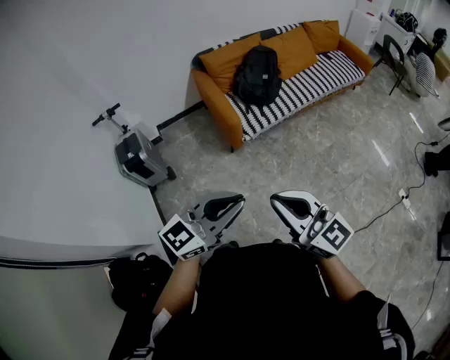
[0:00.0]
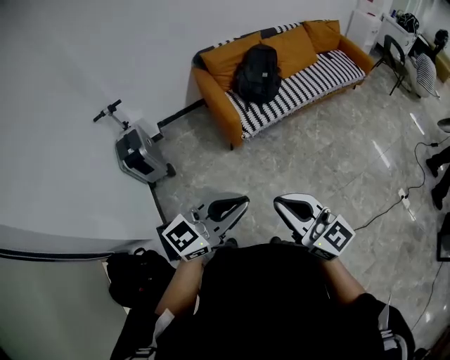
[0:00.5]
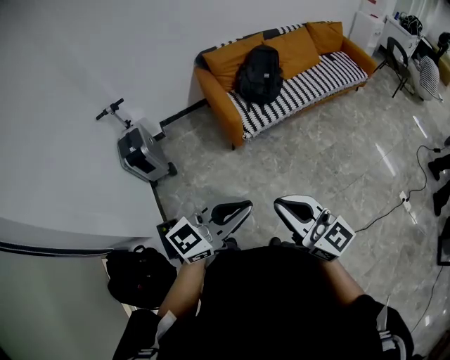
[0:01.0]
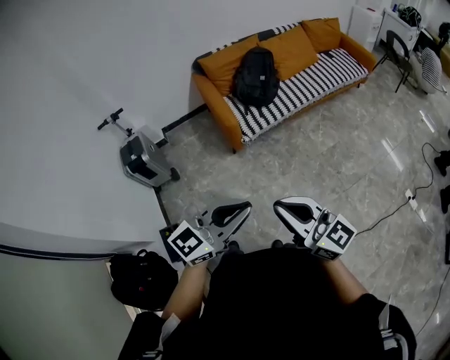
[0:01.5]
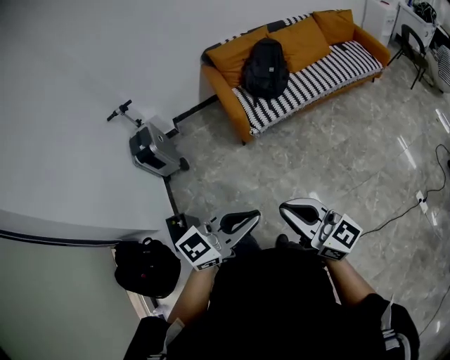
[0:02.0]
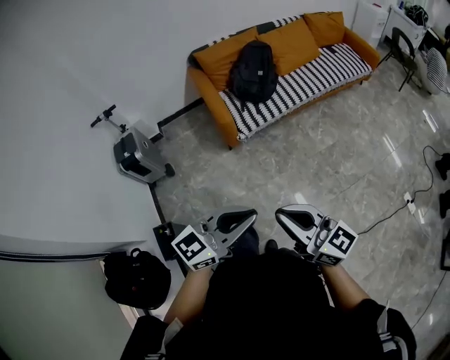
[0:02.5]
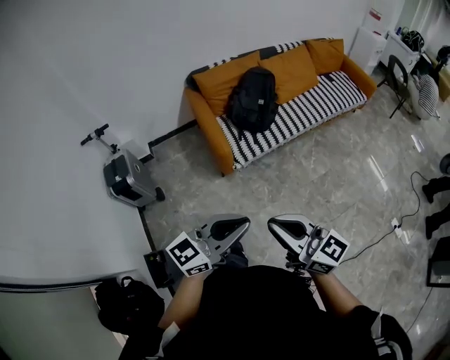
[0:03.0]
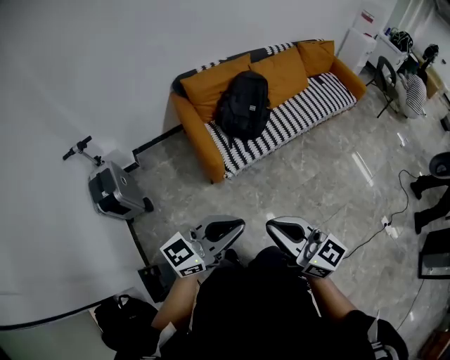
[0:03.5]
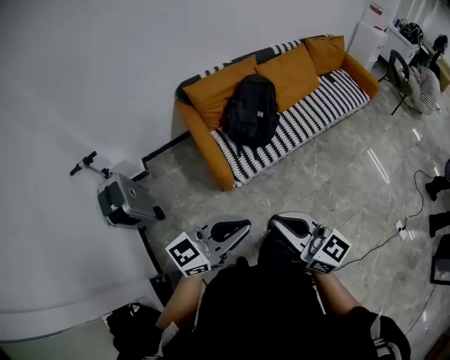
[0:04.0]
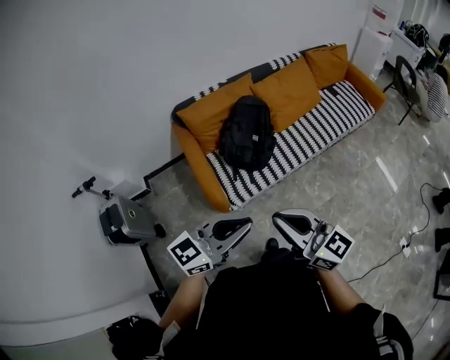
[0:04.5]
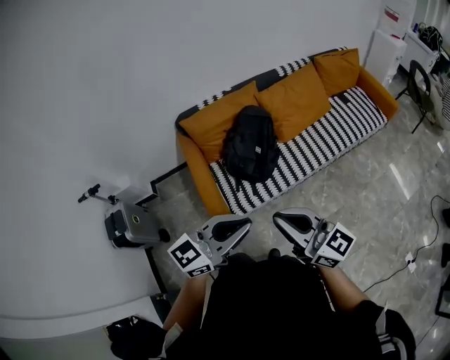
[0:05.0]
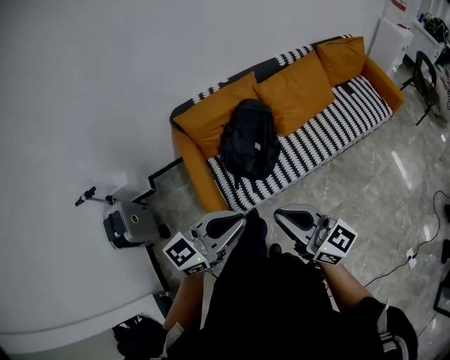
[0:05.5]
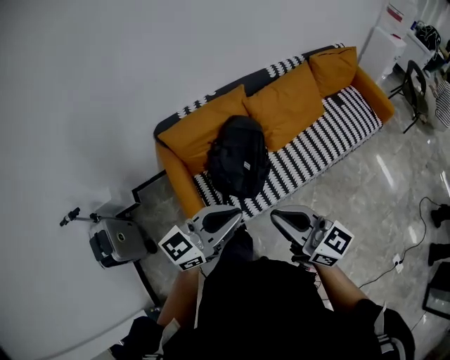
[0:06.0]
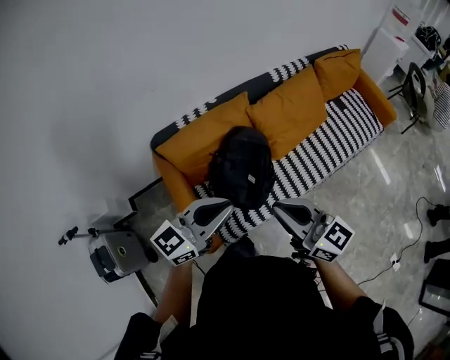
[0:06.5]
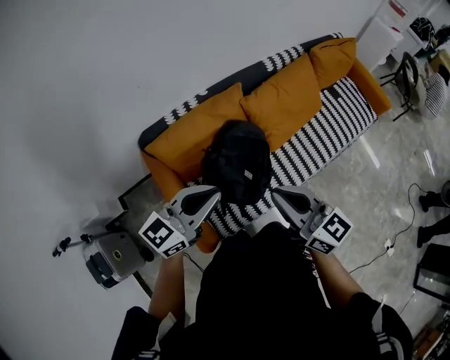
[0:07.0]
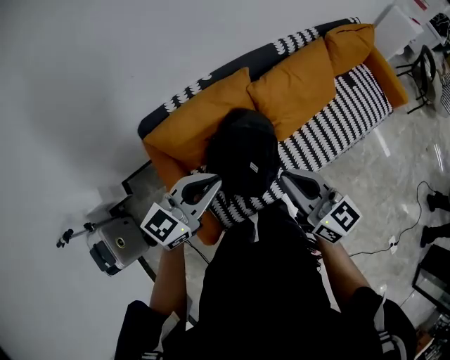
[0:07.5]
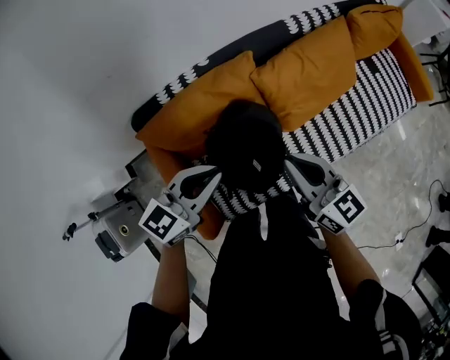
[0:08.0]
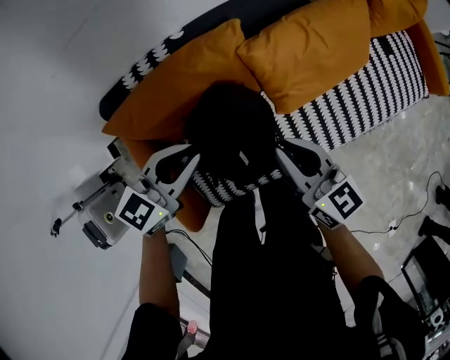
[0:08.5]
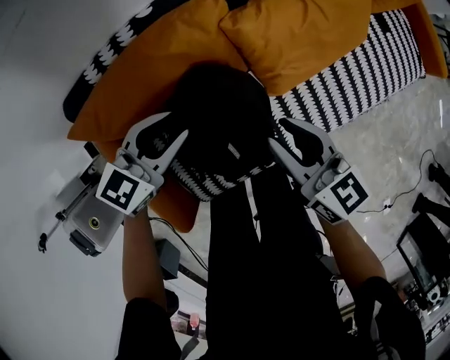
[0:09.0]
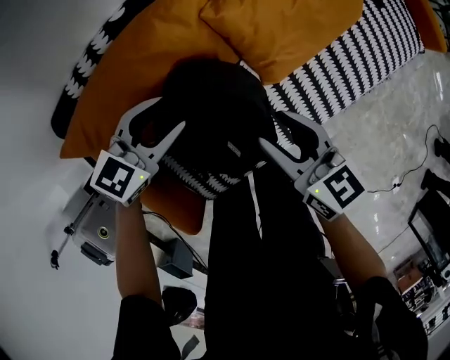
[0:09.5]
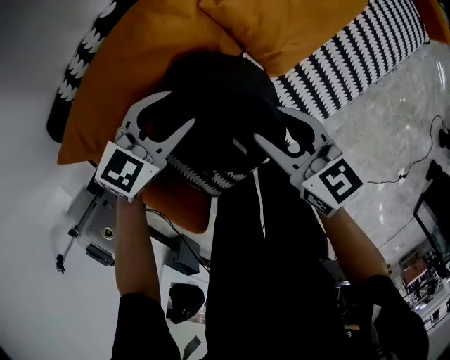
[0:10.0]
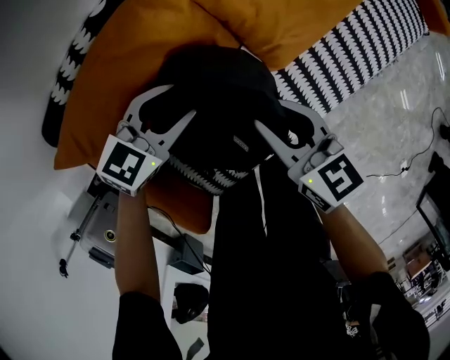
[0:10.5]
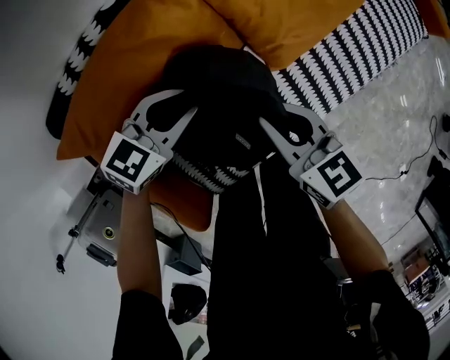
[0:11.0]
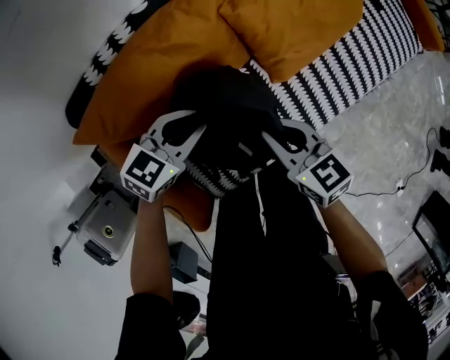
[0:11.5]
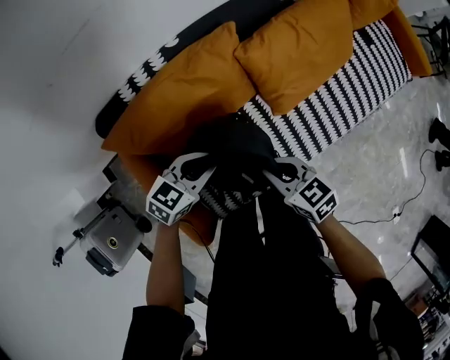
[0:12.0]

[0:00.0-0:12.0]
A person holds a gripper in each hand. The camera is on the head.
0:00.0 to 0:02.0: Both grippers move to the right, approximately 15 cm.
0:02.0 to 0:04.0: Both grippers move forward, roughly 30 cm.
0:04.0 to 0:06.0: Both grippers move forward, approximately 35 cm.
0:06.0 to 0:08.0: Both grippers travel together forward and downward, about 30 cm.
0:08.0 to 0:10.0: The left gripper travels downward and forward by some 25 cm, turns by approximately 20 degrees, and opens up, while the right gripper moves downward, approximately 20 cm, changes its angle by approximately 20 degrees, and opens.
0:10.0 to 0:12.0: Both grippers travel together backward, about 10 cm. The left gripper closes up. The right gripper closes.

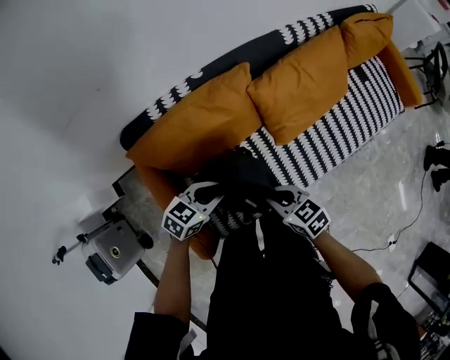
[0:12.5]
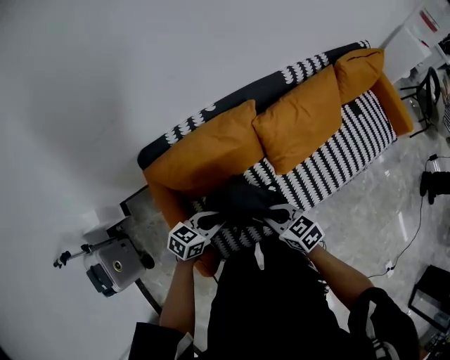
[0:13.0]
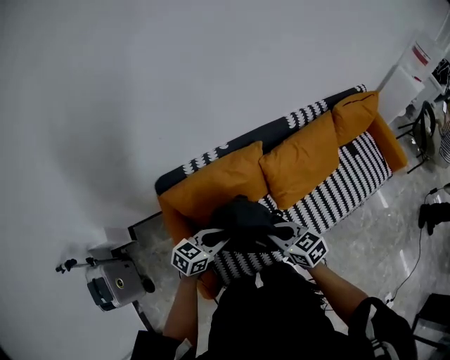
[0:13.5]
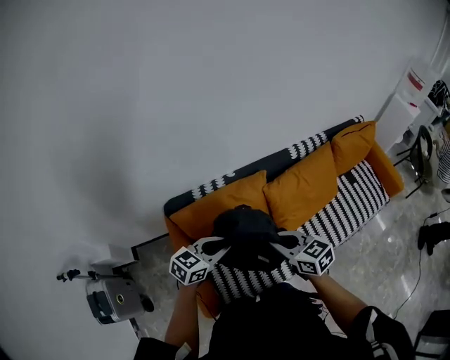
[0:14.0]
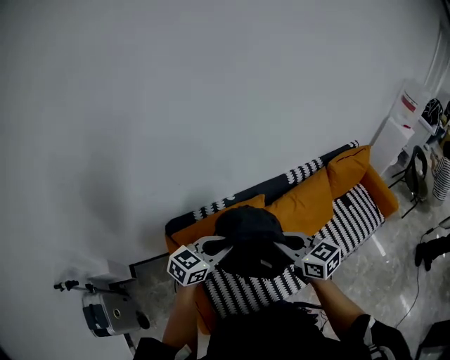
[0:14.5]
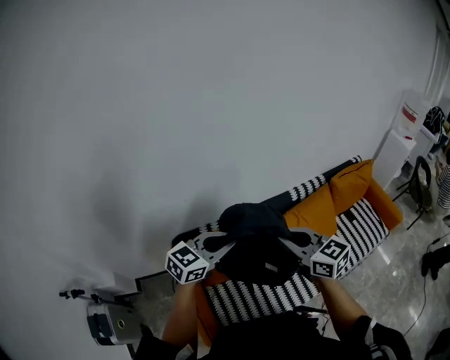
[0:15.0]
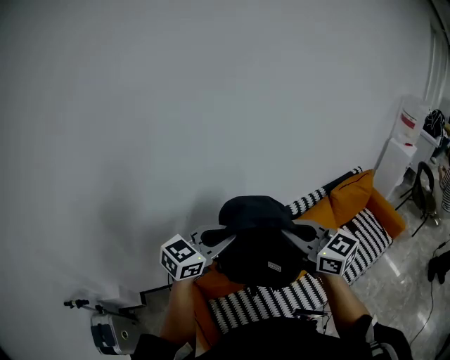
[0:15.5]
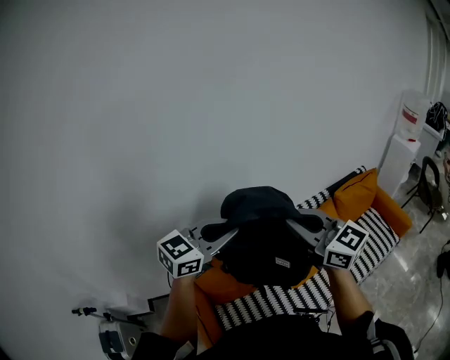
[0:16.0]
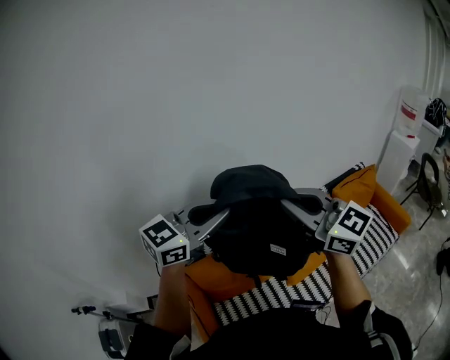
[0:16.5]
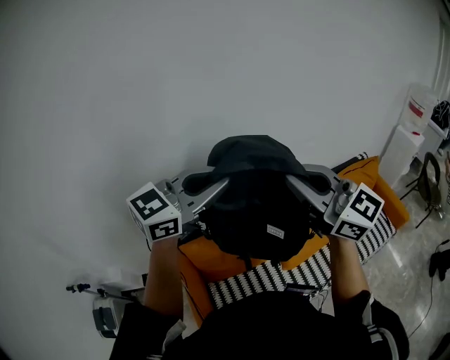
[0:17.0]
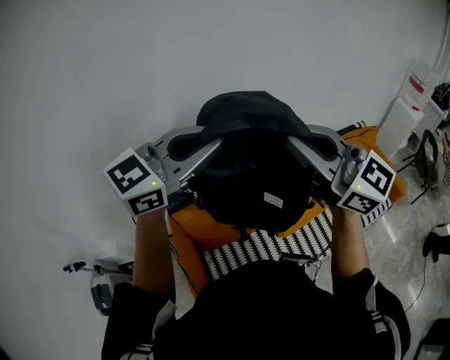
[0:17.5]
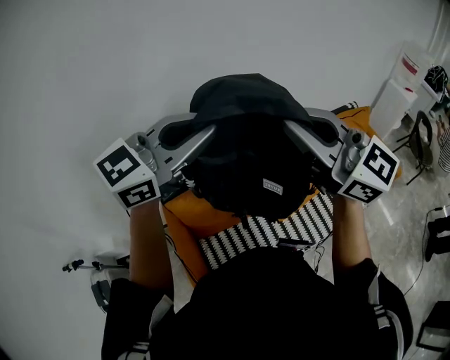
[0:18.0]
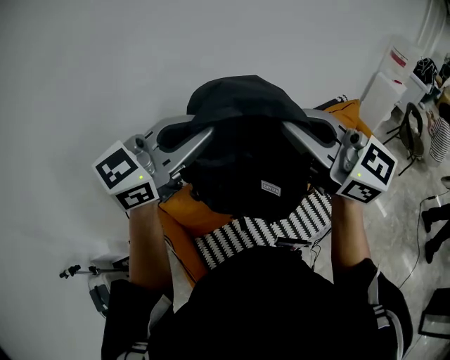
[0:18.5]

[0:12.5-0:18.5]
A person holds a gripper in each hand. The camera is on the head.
0:12.5 to 0:14.5: Both grippers travel together upward, about 30 cm. The left gripper turns by roughly 20 degrees, while the right gripper changes its angle by roughly 30 degrees.
0:14.5 to 0:16.5: The two grippers go approximately 30 cm upward. The right gripper turns by some 40 degrees. The left gripper swivels approximately 20 degrees.
0:16.5 to 0:18.5: The grippers stay close to where they were, moving slightly.

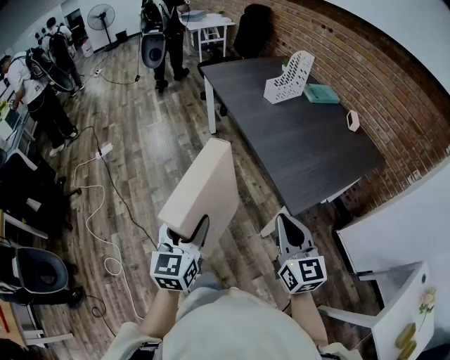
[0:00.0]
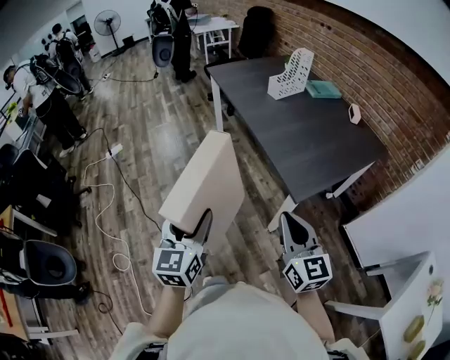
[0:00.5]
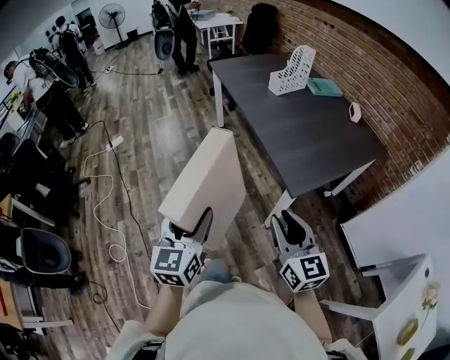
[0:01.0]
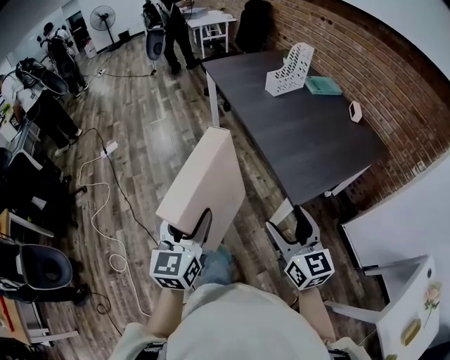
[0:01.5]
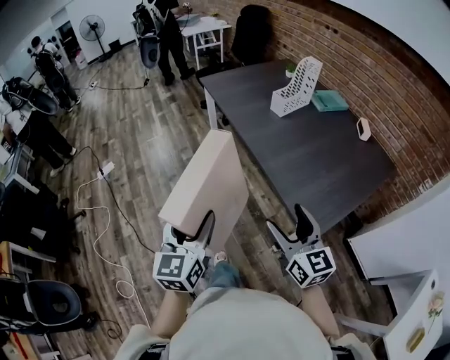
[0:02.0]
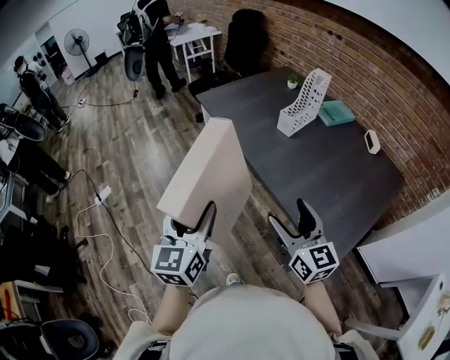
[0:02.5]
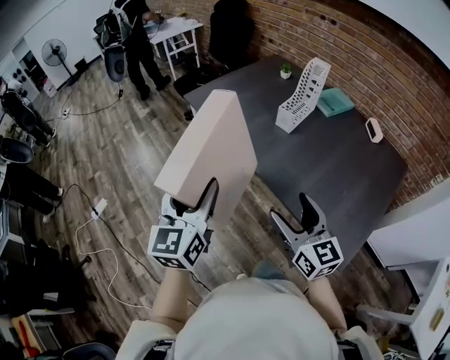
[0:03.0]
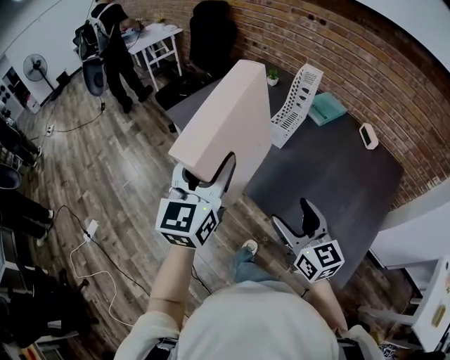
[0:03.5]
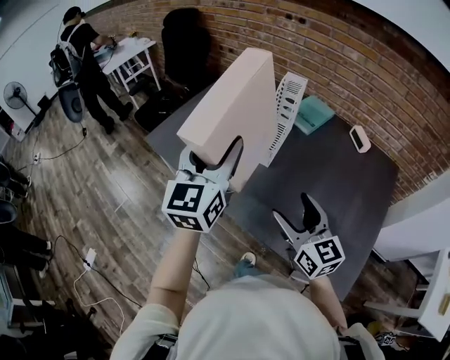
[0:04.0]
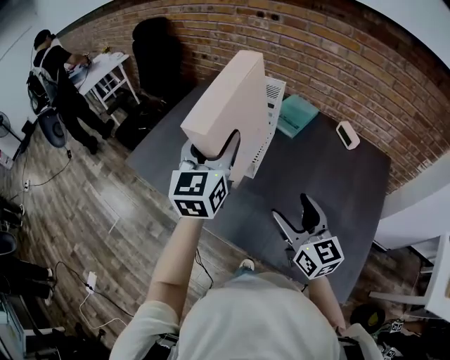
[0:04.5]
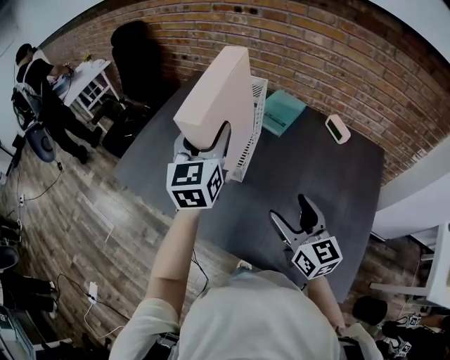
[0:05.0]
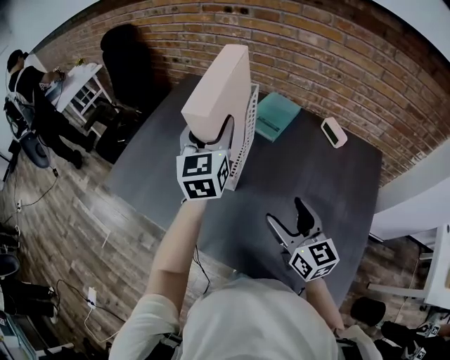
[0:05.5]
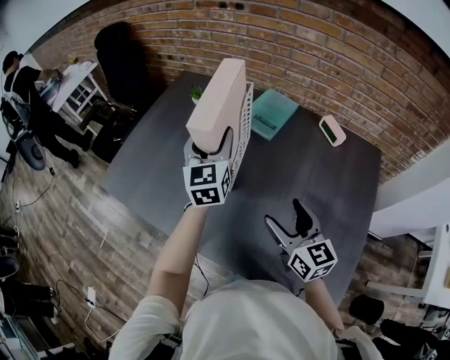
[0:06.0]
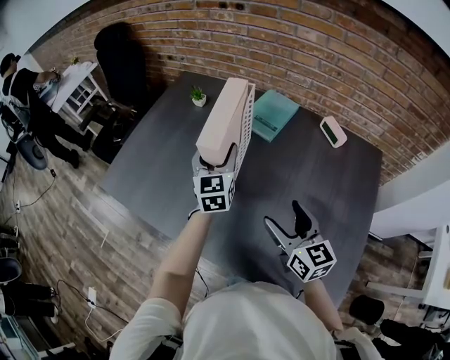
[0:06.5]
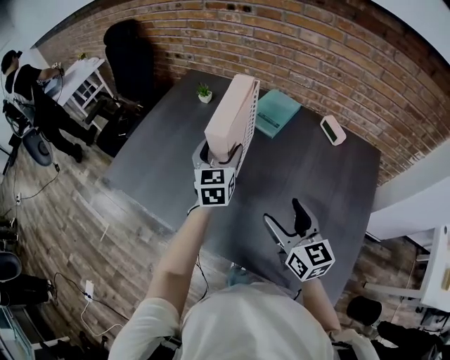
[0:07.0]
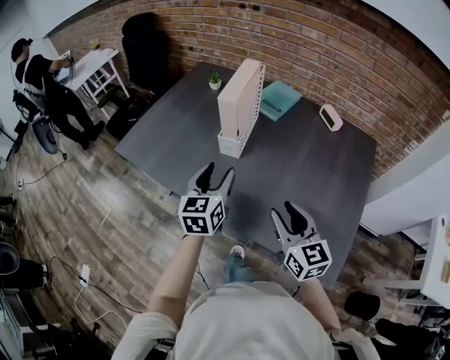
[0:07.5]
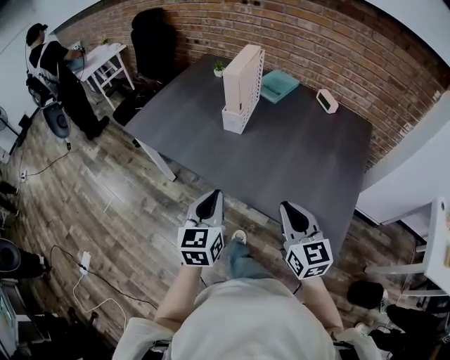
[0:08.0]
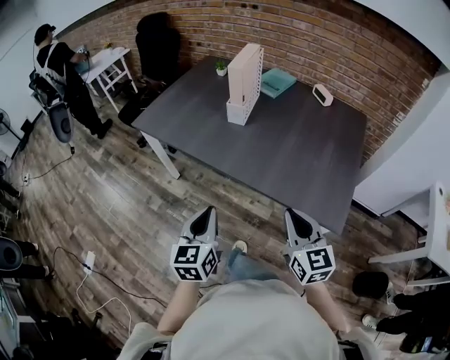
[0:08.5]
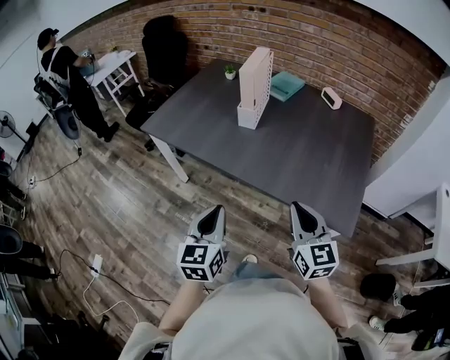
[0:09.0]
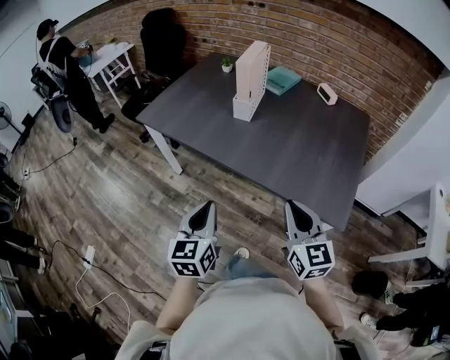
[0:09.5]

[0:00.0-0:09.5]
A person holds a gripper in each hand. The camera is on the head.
0:00.0 to 0:02.0: The two grippers go about 15 cm forward. The right gripper opens.
0:02.0 to 0:04.0: The left gripper shifts by about 60 cm, and turns by some 30 degrees. Meanwhile the right gripper changes place by some 40 cm, and changes its angle by about 20 degrees.
0:04.0 to 0:05.5: The right gripper moves to the right and forward, roughly 15 cm. Meanwhile the left gripper heads forward and to the right, covering about 25 cm.
0:05.5 to 0:07.5: The left gripper is displaced backward and downward by approximately 25 cm, while the right gripper is displaced backward by about 15 cm, and closes up.
0:07.5 to 0:09.5: The grippers both shift backward by about 25 cm. The right gripper closes its fingers; the left gripper closes up.
